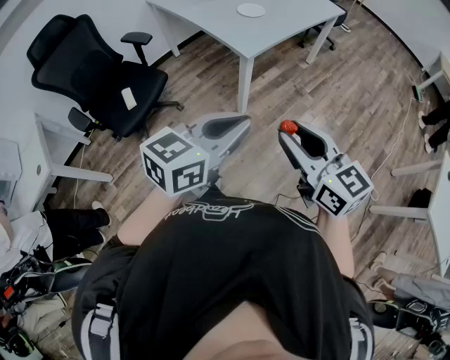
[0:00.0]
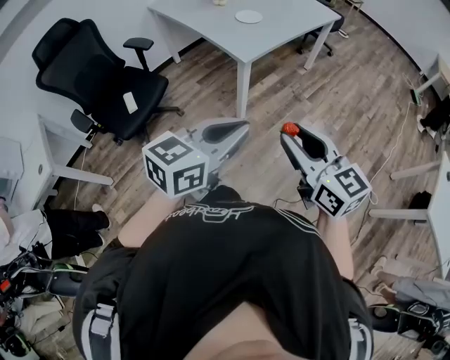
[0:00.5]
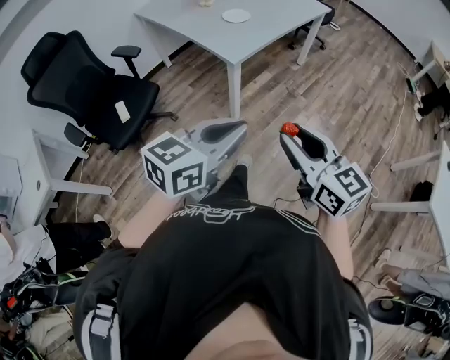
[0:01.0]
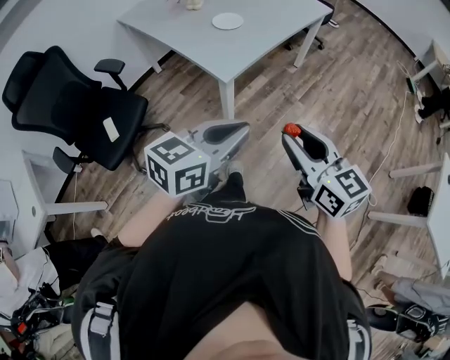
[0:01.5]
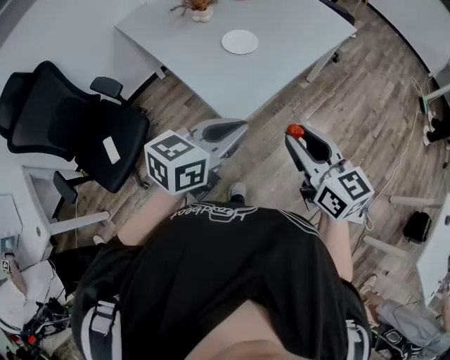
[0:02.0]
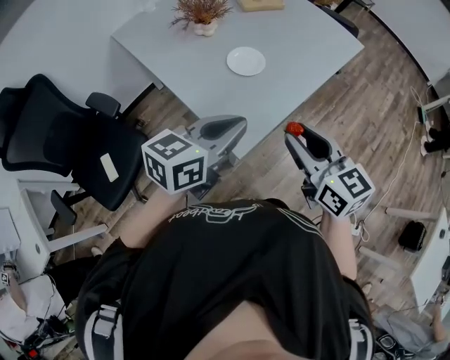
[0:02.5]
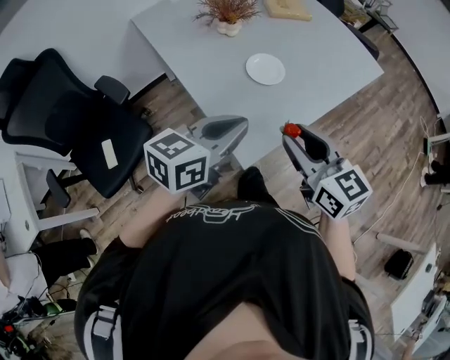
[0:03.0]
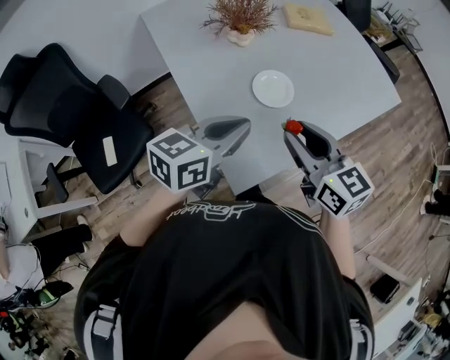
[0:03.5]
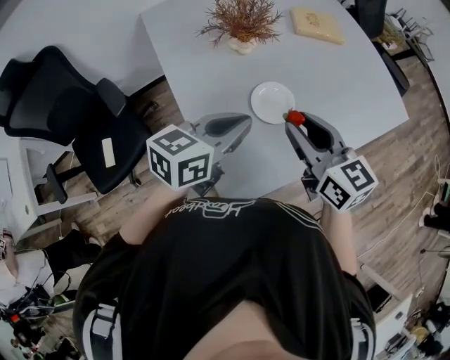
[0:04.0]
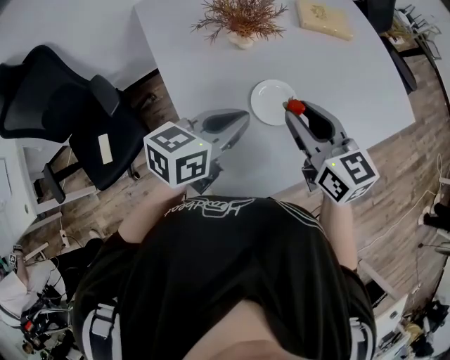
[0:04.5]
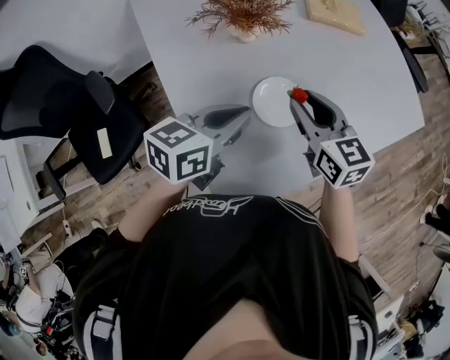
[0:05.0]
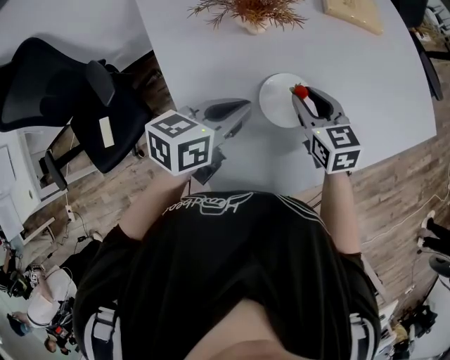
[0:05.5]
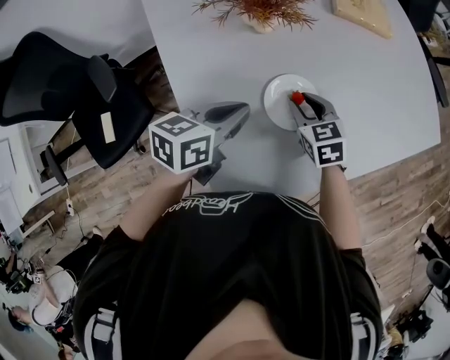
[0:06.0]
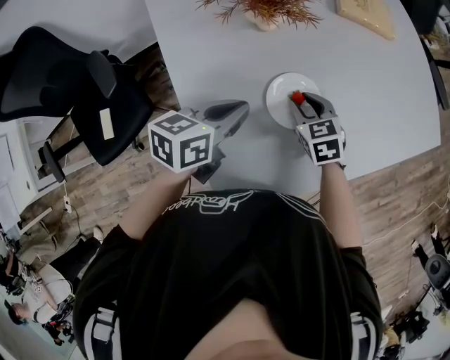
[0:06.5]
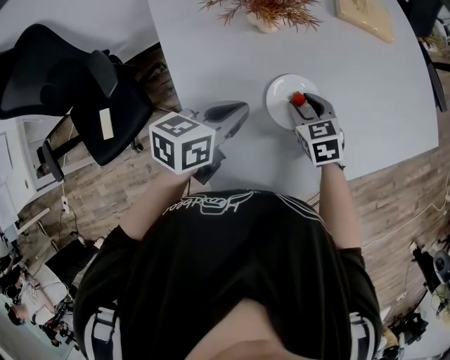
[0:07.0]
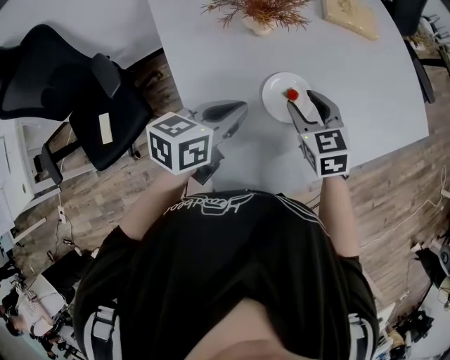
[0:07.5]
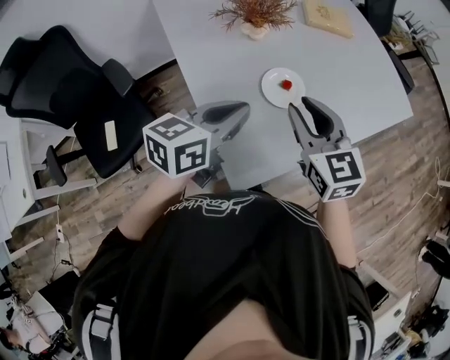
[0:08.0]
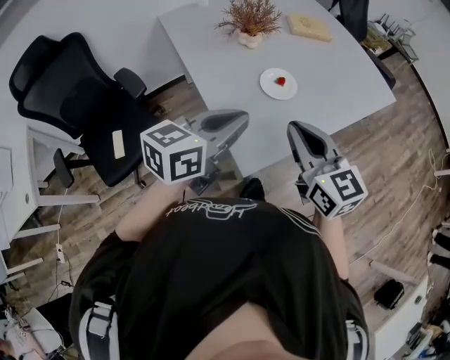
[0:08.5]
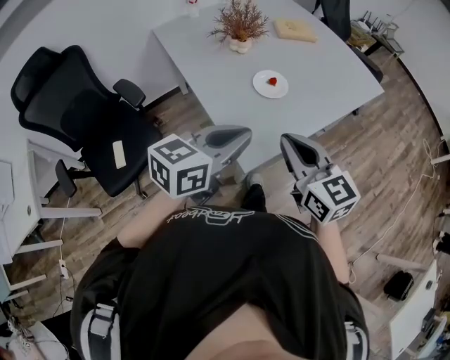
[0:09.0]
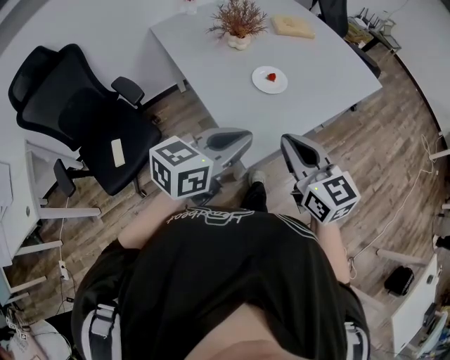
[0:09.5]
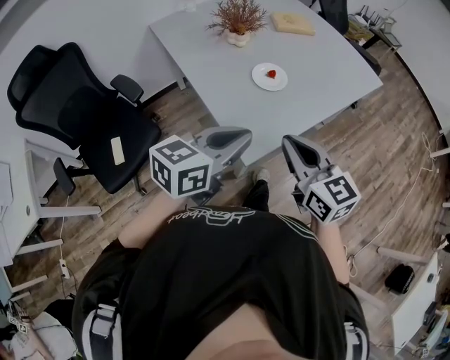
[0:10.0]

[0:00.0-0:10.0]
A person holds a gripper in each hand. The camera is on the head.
0:00.0 to 0:02.0: The grippers both shift forward by roughly 35 cm.
0:02.0 to 0:04.0: Both grippers move forward, approximately 35 cm. The right gripper changes its angle by approximately 20 degrees.
0:04.0 to 0:06.0: The right gripper is displaced downward and forward by about 25 cm, and tilts its fingers approximately 30 degrees downward. Meanwhile the left gripper shifts some 15 cm downward and forward.
0:06.0 to 0:08.0: The right gripper travels upward and backward by some 25 cm, and rotates approximately 30 degrees, while the left gripper goes approximately 15 cm upward and backward.
0:08.0 to 0:10.0: The grippers both shift backward by some 20 cm. The right gripper closes its fingers.

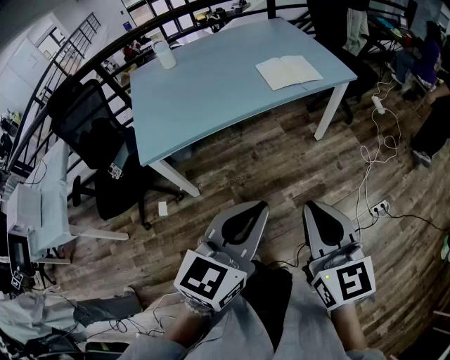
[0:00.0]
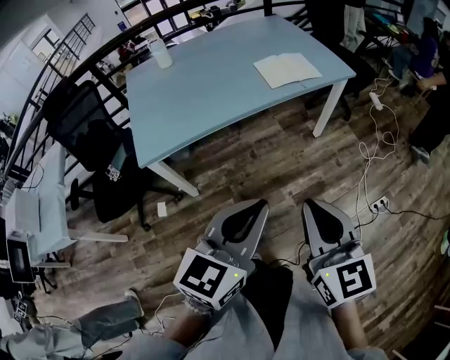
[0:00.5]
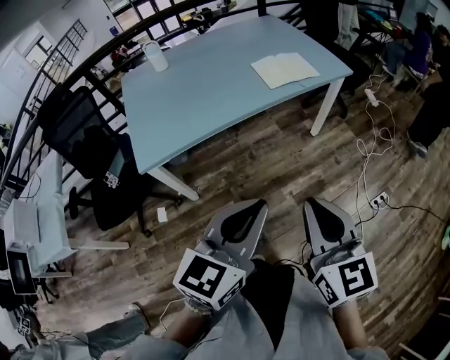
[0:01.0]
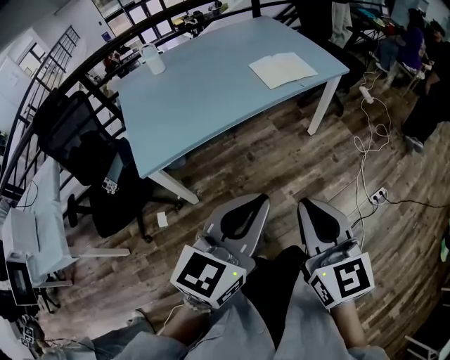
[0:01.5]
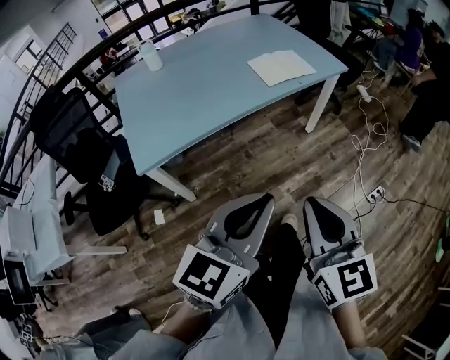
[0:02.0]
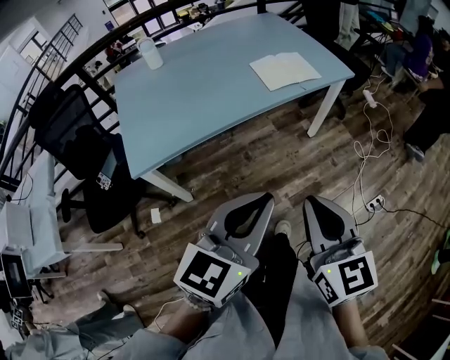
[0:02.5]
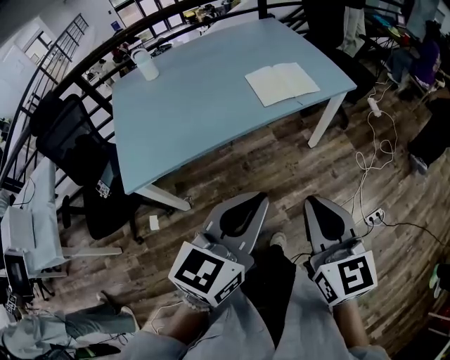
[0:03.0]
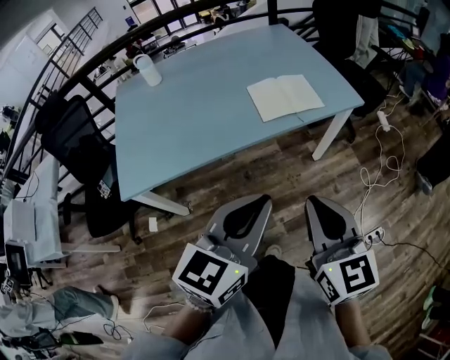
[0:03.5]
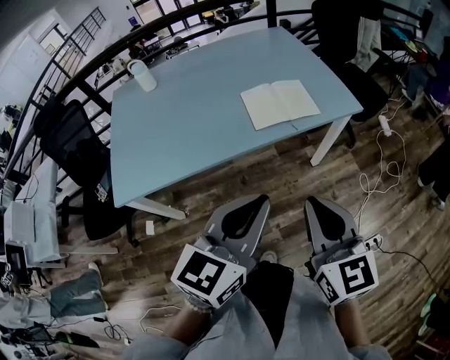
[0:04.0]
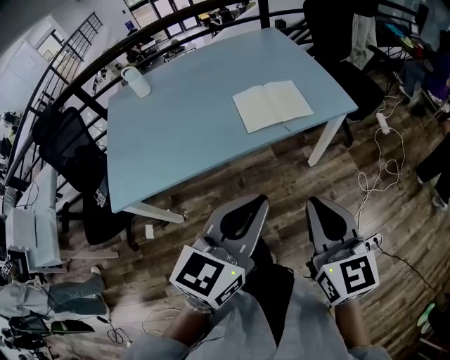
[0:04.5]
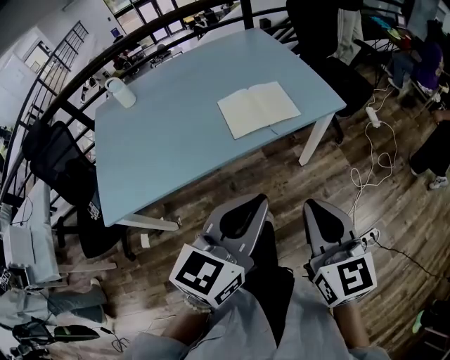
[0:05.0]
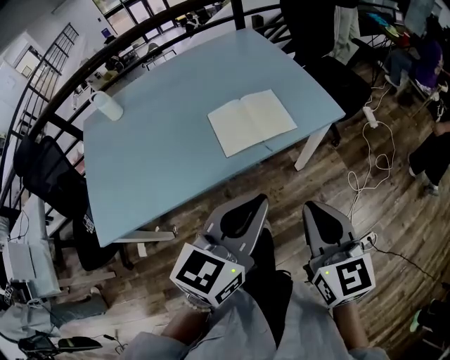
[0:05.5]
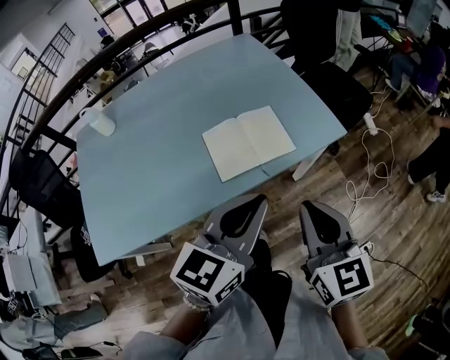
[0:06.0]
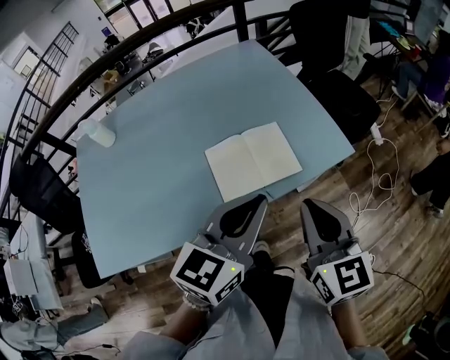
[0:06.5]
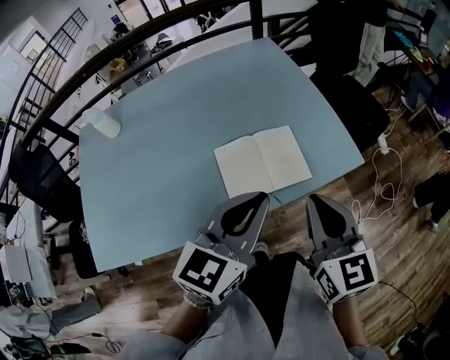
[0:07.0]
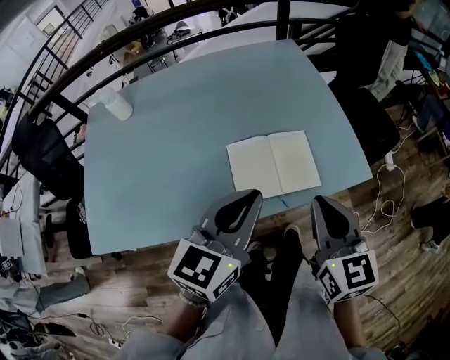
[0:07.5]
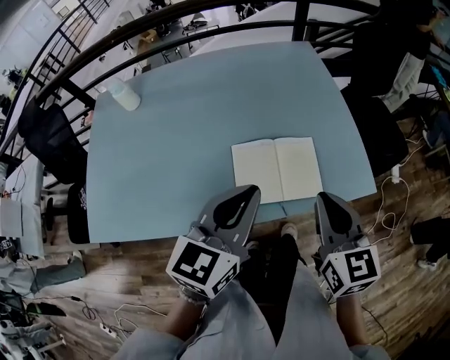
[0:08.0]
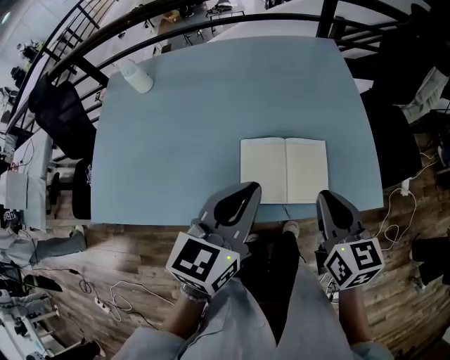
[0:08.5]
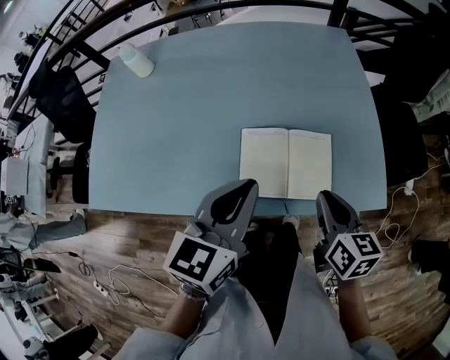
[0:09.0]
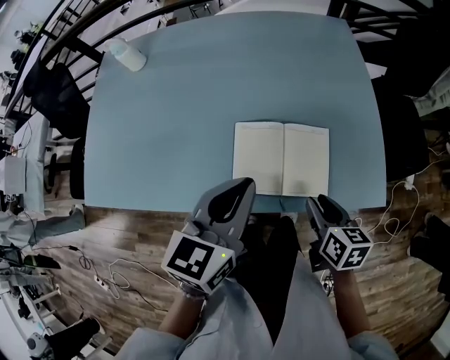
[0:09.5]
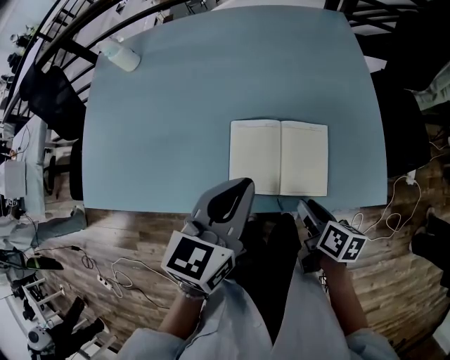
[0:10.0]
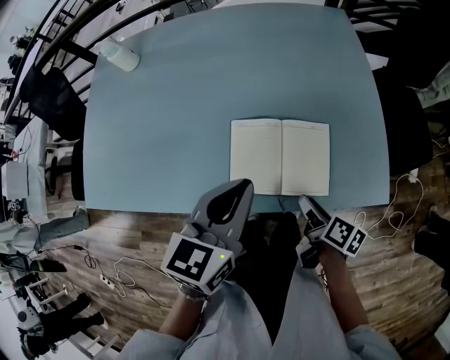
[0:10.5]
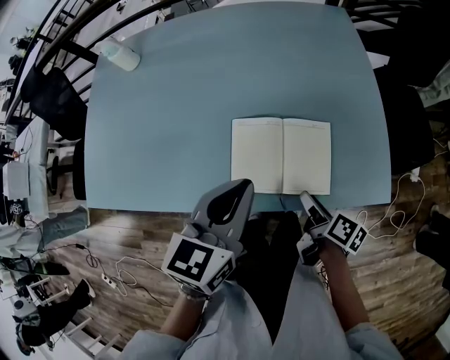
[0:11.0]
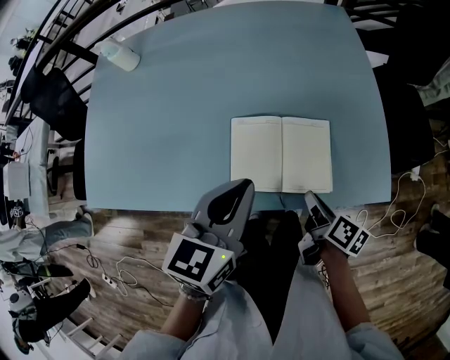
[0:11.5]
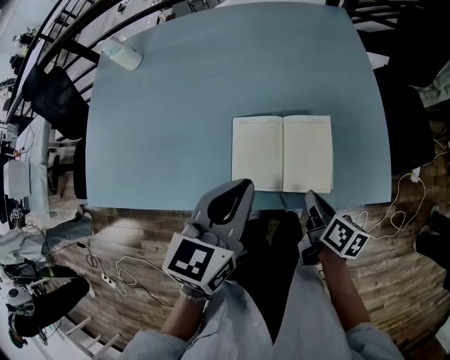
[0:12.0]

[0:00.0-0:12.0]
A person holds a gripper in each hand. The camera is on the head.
0:00.0 to 0:02.0: The two grippers go about 5 cm to the left.
0:02.0 to 0:04.0: Both grippers travel together forward and to the right, about 30 cm.
0:04.0 to 0:06.0: The two grippers go about 20 cm forward.
0:06.0 to 0:08.0: The right gripper moves forward, some 15 cm; the left gripper shifts some 15 cm forward and to the left.
0:08.0 to 0:10.0: The left gripper travels downward by roughly 5 cm. Meanwhile the right gripper is displaced downward by approximately 20 cm, rotates around the line of its fingers by some 40 degrees, clockwise from behind, and opens.
0:10.0 to 0:12.0: The right gripper closes up.

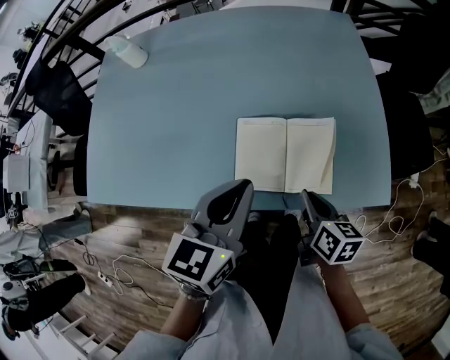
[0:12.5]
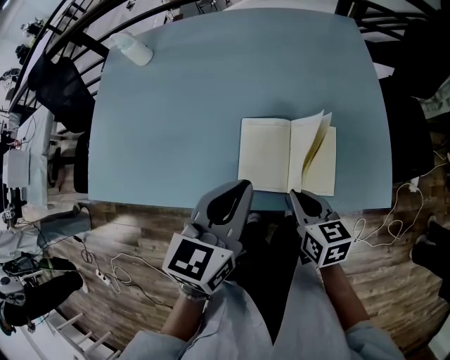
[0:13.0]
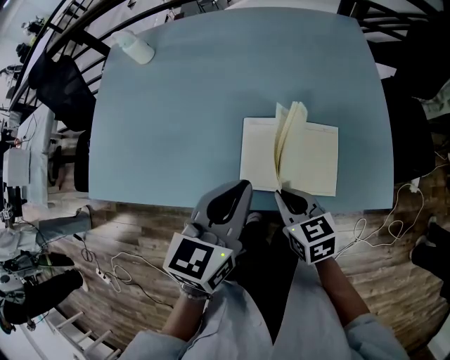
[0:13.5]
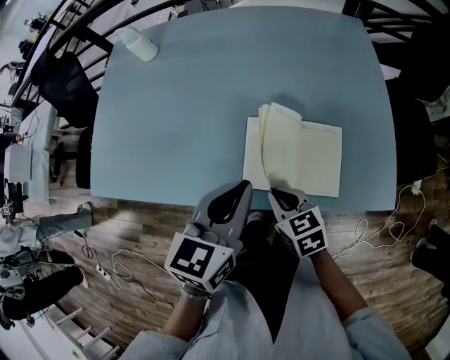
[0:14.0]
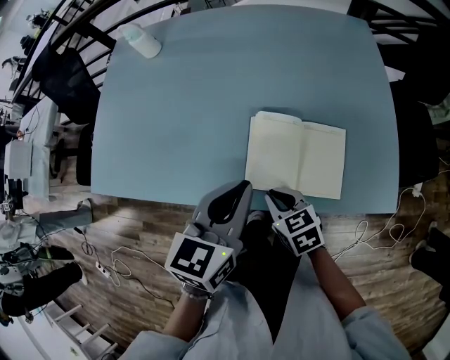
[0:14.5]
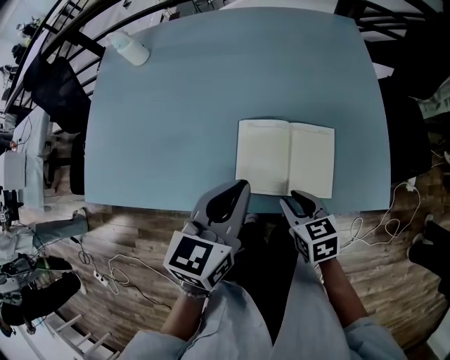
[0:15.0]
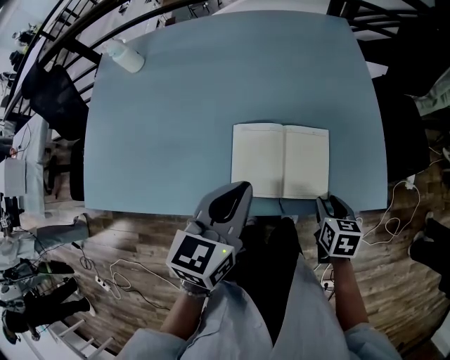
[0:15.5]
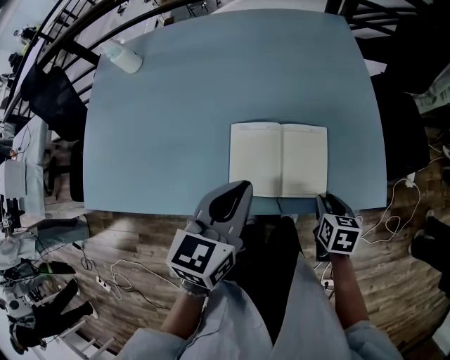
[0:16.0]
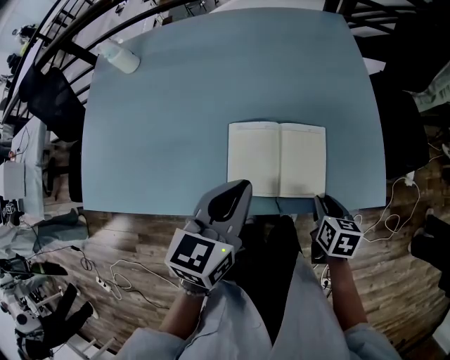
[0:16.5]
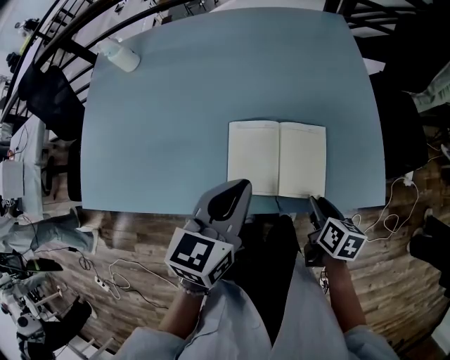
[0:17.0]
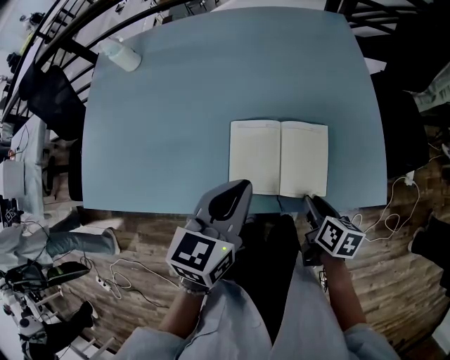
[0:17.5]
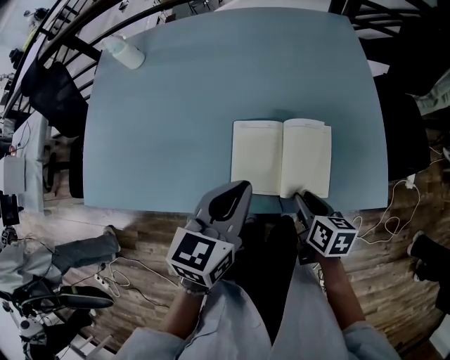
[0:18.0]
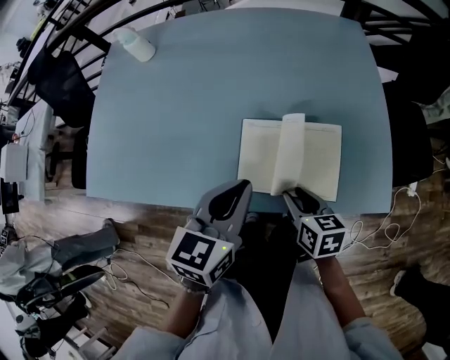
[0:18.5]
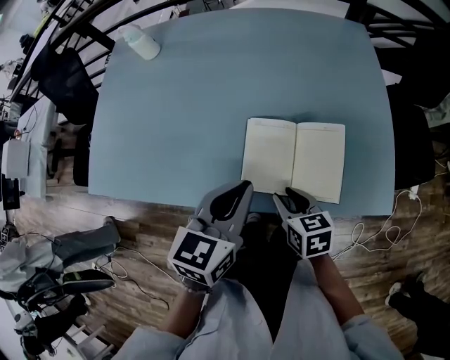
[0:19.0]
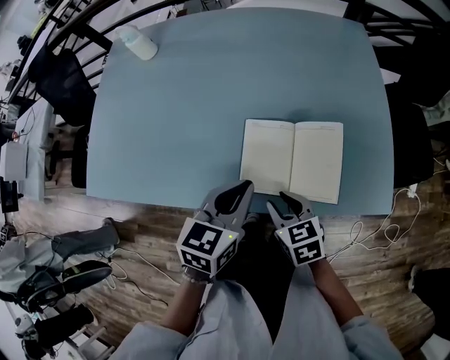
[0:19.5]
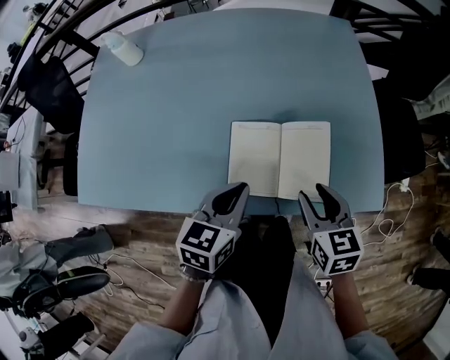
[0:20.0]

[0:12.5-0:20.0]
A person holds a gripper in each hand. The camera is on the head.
0:12.5 to 0:14.5: The right gripper travels to the left by about 15 cm, and rotates roughly 40 degrees.
0:14.5 to 0:16.5: The right gripper changes place by about 20 cm, turns by approximately 40 degrees, and opens up.
0:16.5 to 0:18.0: The right gripper shifts about 5 cm to the left.
0:18.0 to 0:20.0: The right gripper goes roughly 10 cm upward, moves about 10 cm to the left and comes back, and turns by some 30 degrees; the left gripper shifts roughly 5 cm downward.
